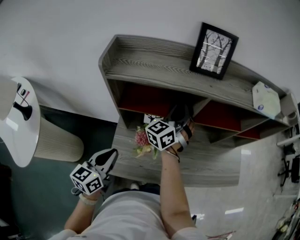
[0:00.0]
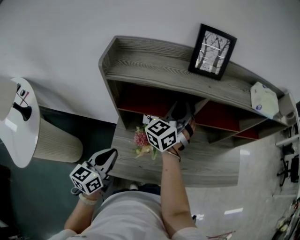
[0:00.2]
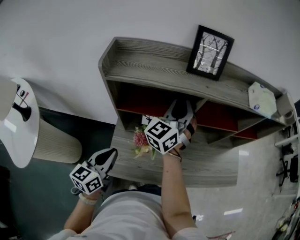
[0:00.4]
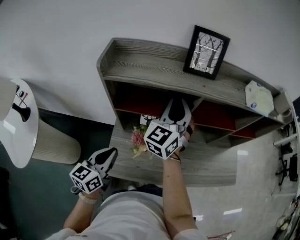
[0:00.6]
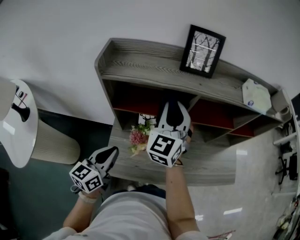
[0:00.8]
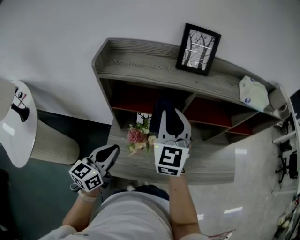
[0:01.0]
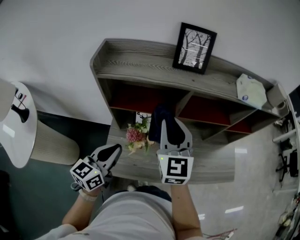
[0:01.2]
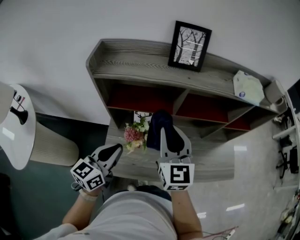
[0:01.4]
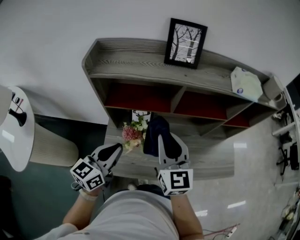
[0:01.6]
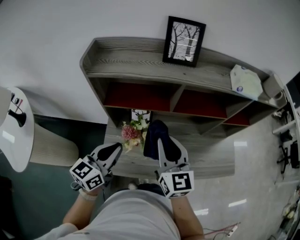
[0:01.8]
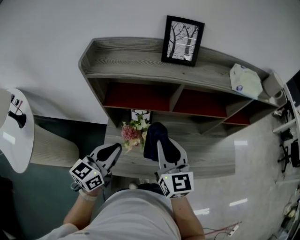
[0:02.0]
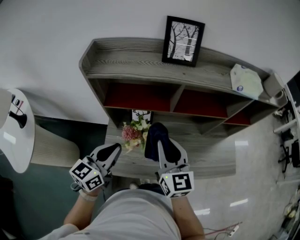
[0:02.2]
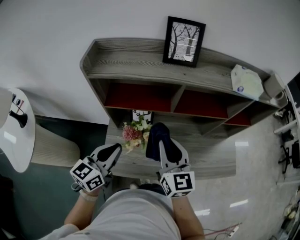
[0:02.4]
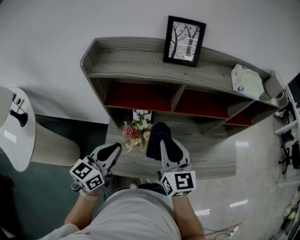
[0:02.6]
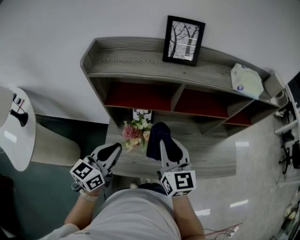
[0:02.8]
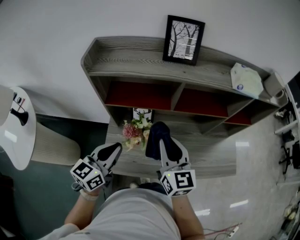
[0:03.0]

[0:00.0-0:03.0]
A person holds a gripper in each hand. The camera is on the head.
0:00.0 to 0:01.6: The left gripper travels to the right by approximately 5 cm, while the right gripper moves backward, about 15 cm, and turns by approximately 50 degrees.
0:01.6 to 0:03.0: There are only small adjustments of the grippers.

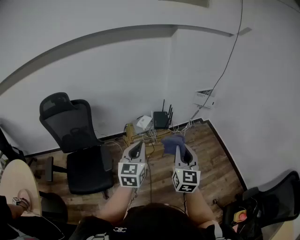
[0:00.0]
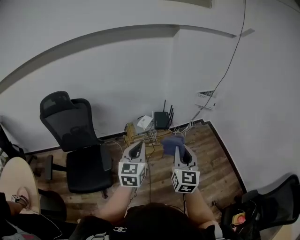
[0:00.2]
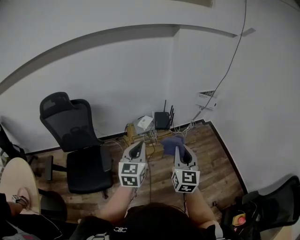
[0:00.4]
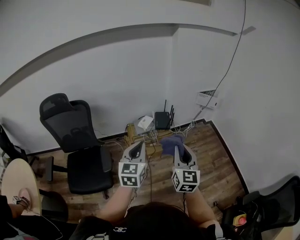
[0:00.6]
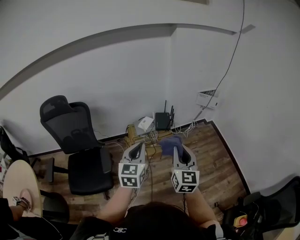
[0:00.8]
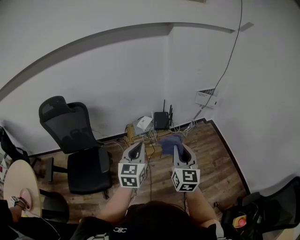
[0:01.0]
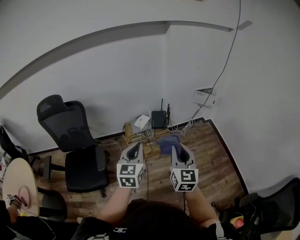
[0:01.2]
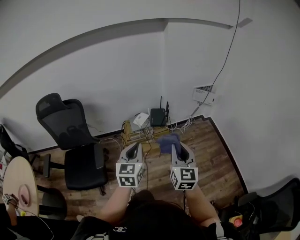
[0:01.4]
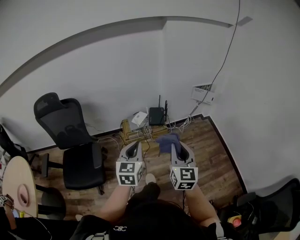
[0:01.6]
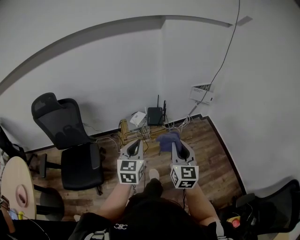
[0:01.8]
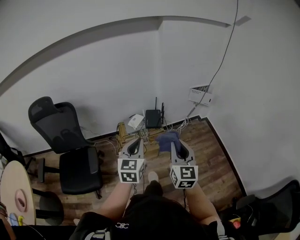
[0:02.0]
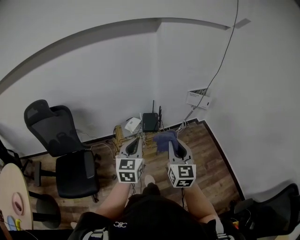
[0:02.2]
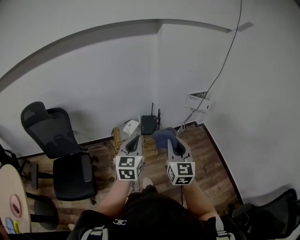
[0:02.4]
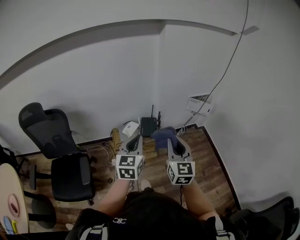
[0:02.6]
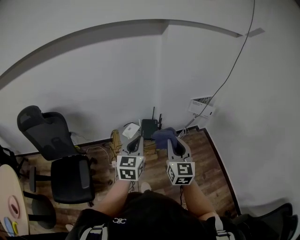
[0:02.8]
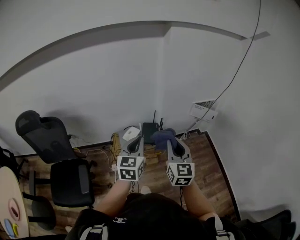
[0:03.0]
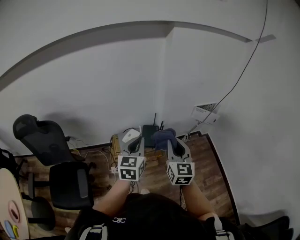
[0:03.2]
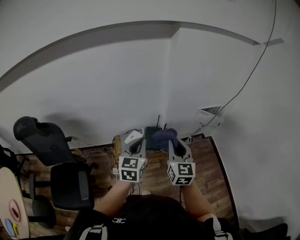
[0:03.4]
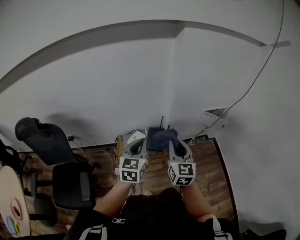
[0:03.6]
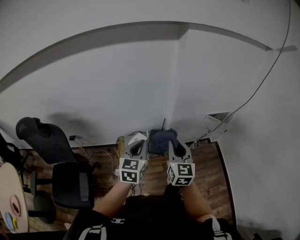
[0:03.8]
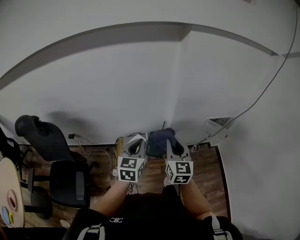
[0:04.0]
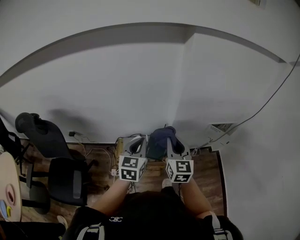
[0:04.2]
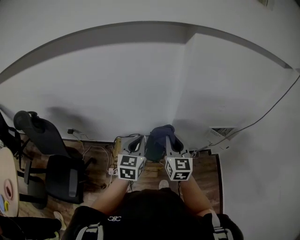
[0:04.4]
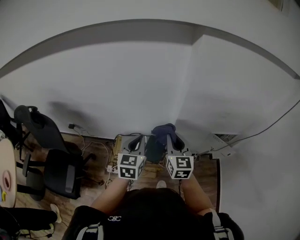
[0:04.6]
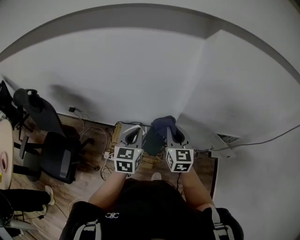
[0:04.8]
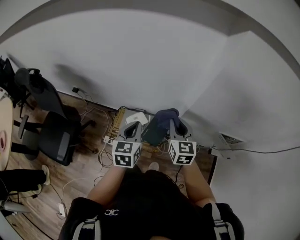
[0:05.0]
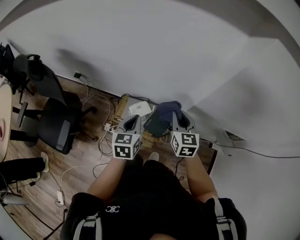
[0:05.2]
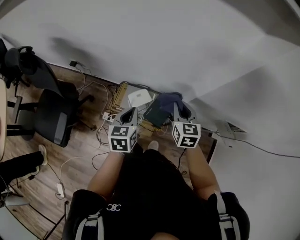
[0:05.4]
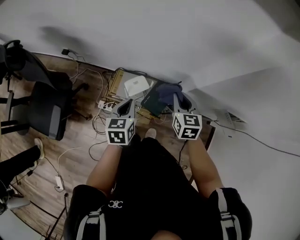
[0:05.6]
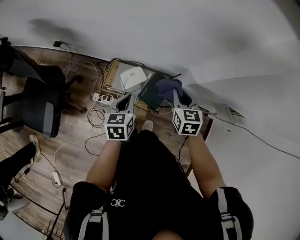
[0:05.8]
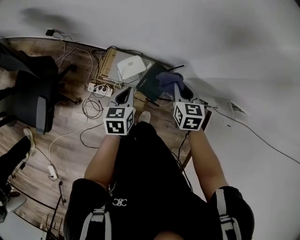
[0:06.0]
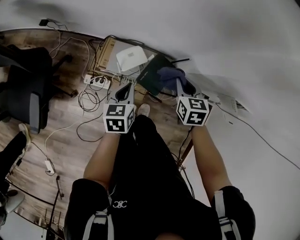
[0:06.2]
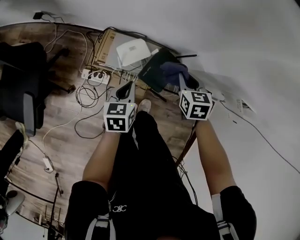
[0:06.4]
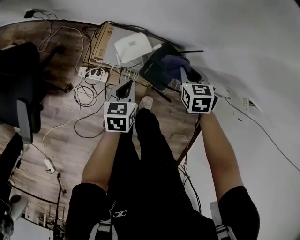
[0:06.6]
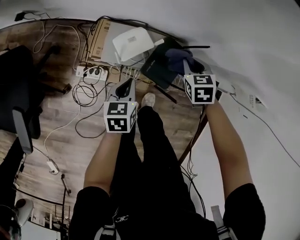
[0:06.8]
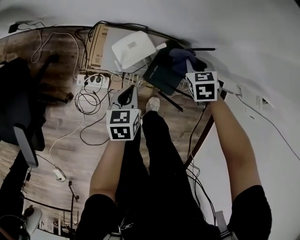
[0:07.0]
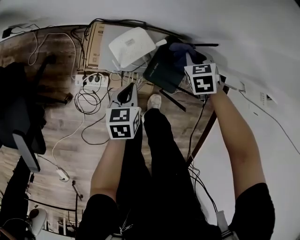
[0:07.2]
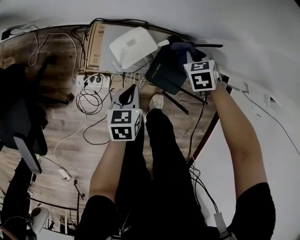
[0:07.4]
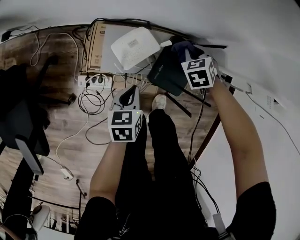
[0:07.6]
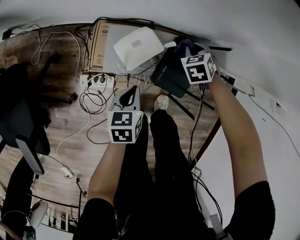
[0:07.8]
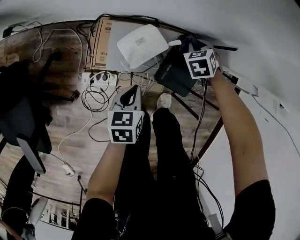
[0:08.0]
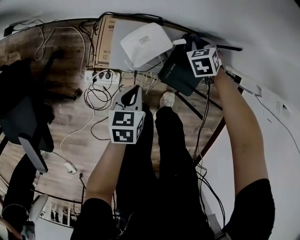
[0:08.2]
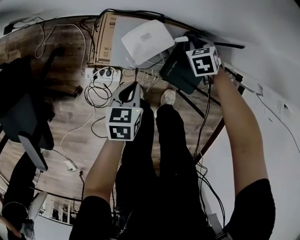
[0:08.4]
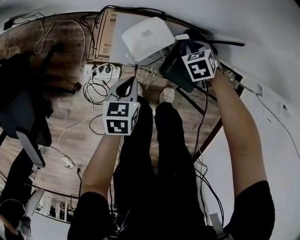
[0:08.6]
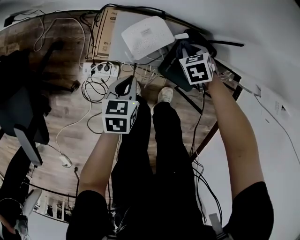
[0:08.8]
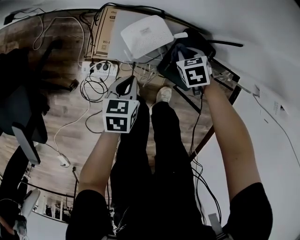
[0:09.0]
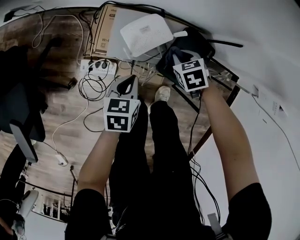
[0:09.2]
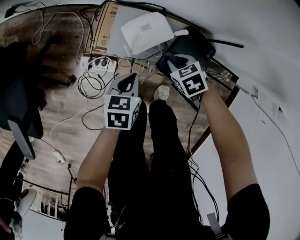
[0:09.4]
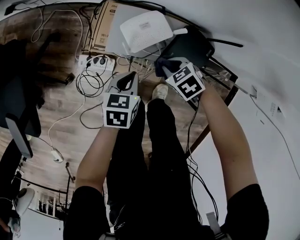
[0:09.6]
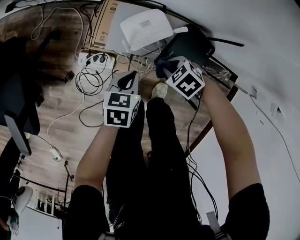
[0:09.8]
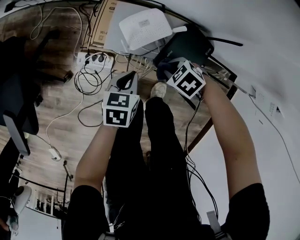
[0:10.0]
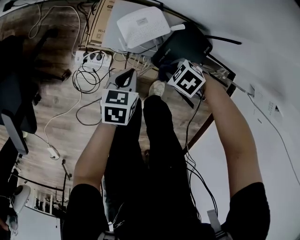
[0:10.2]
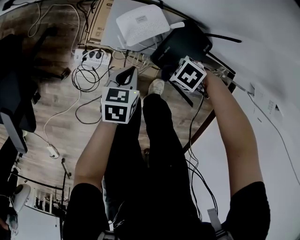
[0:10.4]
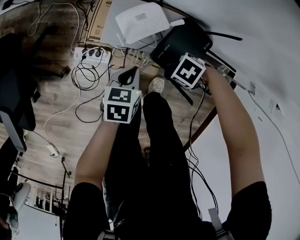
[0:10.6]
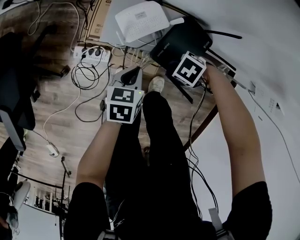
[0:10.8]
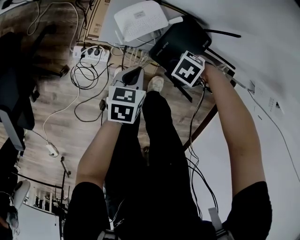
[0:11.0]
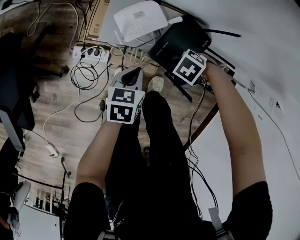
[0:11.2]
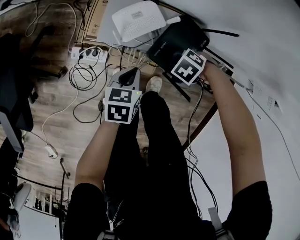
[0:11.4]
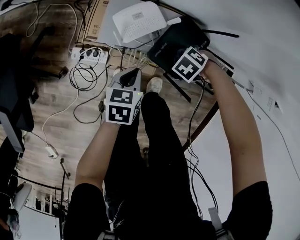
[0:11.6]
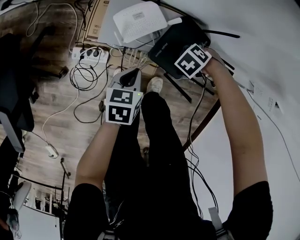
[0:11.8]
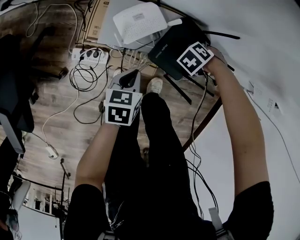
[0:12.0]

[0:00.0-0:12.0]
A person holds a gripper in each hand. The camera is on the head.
0:00.0 to 0:01.6: Both grippers move to the right, some 10 cm.
0:01.6 to 0:03.0: The grippers both shift forward by about 25 cm.
0:03.0 to 0:04.4: Both grippers travel together forward, some 25 cm.
0:04.4 to 0:06.0: The right gripper is displaced downward and forward by approximately 30 cm, and tips its fingers downward by some 40 degrees; the left gripper is displaced downward by approximately 30 cm, and turns by roughly 40 degrees.
0:06.0 to 0:07.6: Both grippers travel together downward, about 30 cm. The right gripper turns by approximately 30 degrees.
0:07.6 to 0:09.0: The right gripper moves roughly 10 cm.
0:09.0 to 0:10.4: The right gripper ends up roughly 15 cm from where it was, and rotates roughly 50 degrees.
0:10.4 to 0:12.0: The right gripper changes place by roughly 15 cm, and rotates roughly 30 degrees.

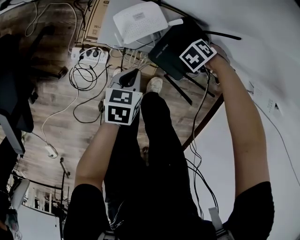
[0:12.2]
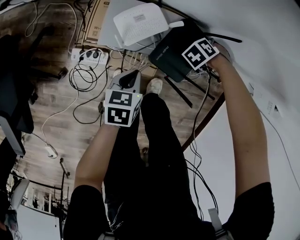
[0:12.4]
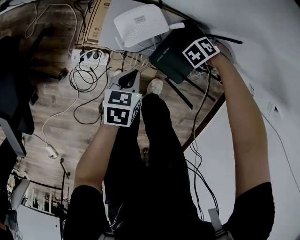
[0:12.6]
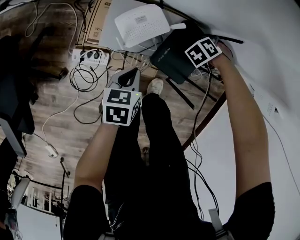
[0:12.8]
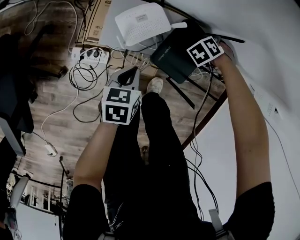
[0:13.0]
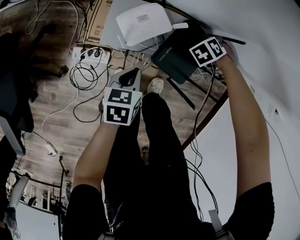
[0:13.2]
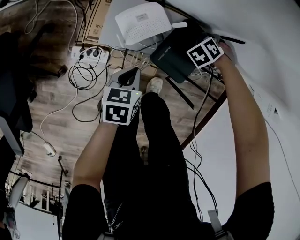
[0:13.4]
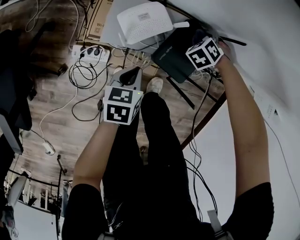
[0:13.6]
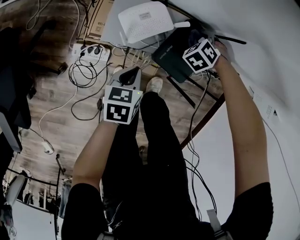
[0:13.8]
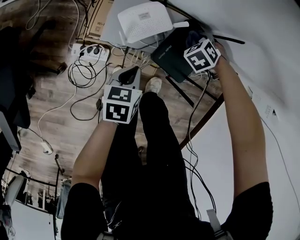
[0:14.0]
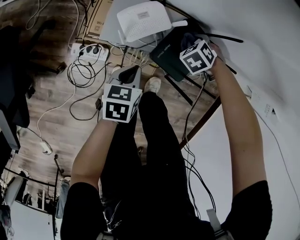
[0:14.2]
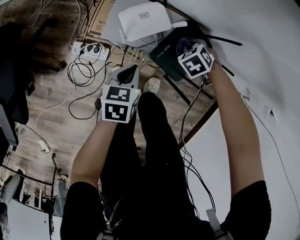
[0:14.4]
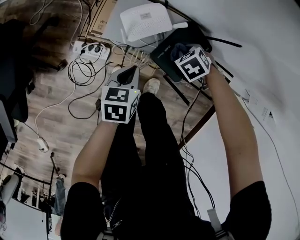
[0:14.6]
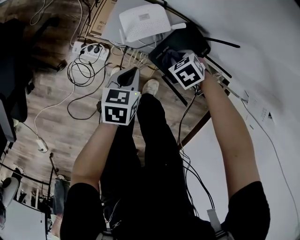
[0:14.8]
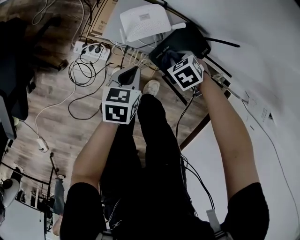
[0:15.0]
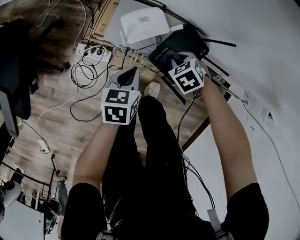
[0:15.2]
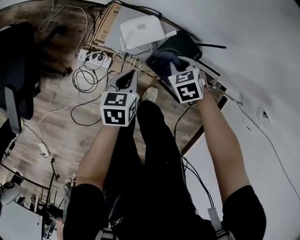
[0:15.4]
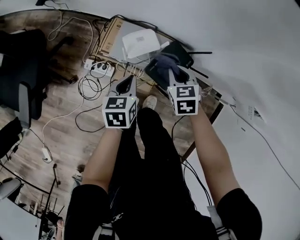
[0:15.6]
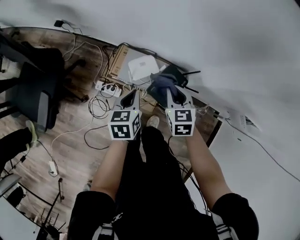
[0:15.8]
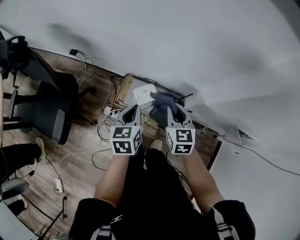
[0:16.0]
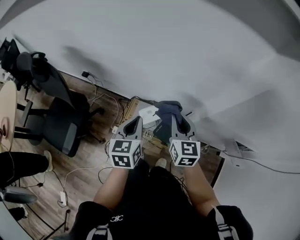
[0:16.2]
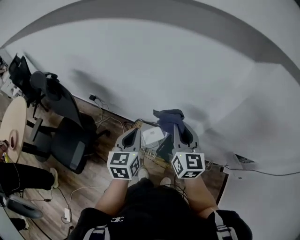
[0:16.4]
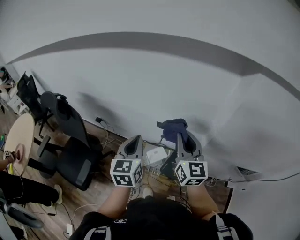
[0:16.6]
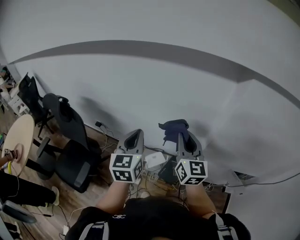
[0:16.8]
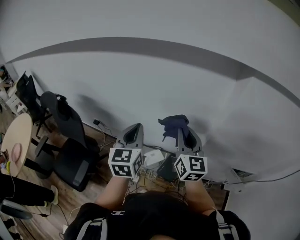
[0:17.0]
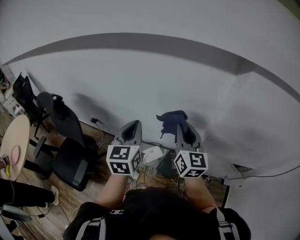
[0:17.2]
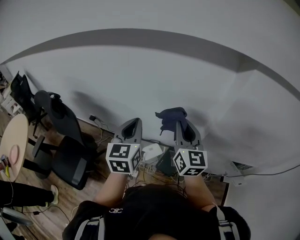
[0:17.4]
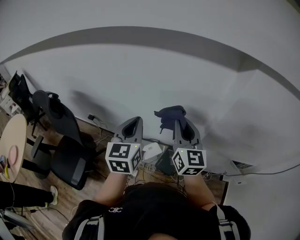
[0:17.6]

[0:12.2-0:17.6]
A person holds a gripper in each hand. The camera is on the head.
0:12.2 to 0:13.6: The right gripper changes place by roughly 5 cm.
0:13.6 to 0:15.0: The right gripper changes place by some 15 cm, and swivels about 30 degrees.
0:15.0 to 0:16.2: The two grippers go some 50 cm upward. The right gripper tips its fingers upward by roughly 60 degrees. Meanwhile the left gripper turns by some 30 degrees.
0:16.2 to 0:17.6: Both grippers move upward, roughly 20 cm. The right gripper swivels approximately 20 degrees; the left gripper swivels some 20 degrees.

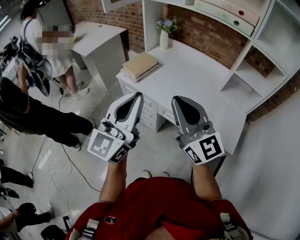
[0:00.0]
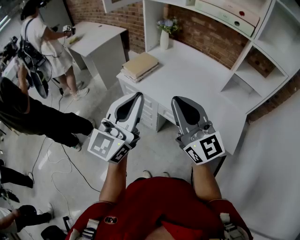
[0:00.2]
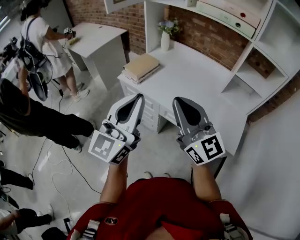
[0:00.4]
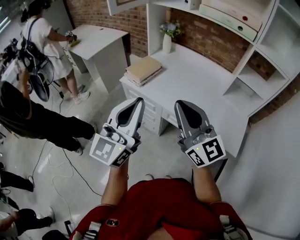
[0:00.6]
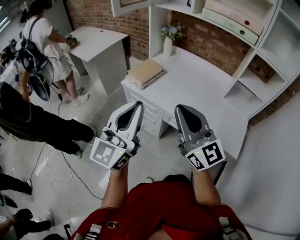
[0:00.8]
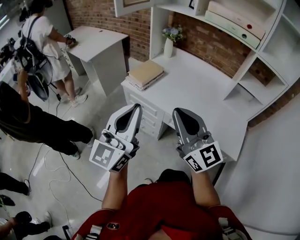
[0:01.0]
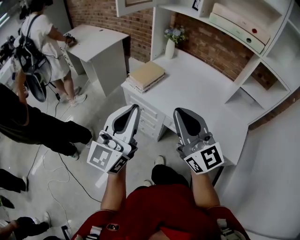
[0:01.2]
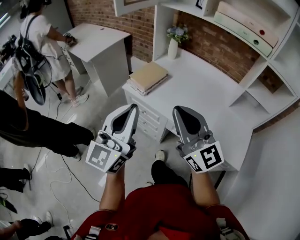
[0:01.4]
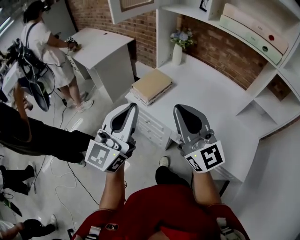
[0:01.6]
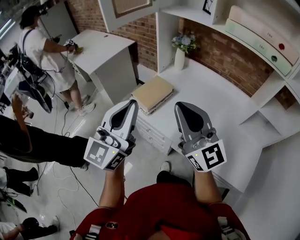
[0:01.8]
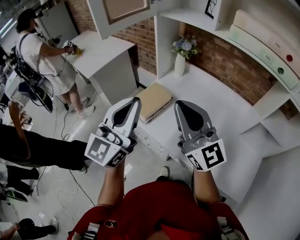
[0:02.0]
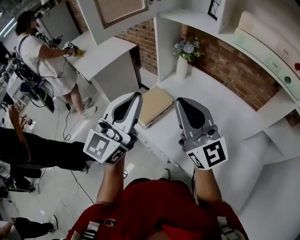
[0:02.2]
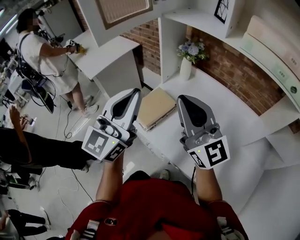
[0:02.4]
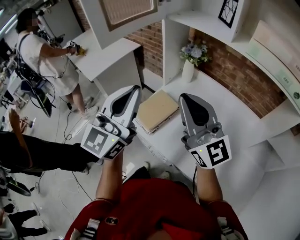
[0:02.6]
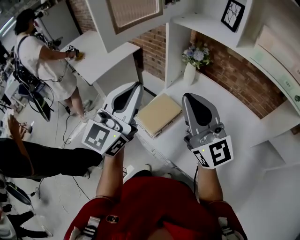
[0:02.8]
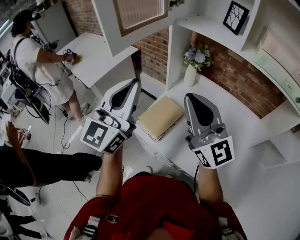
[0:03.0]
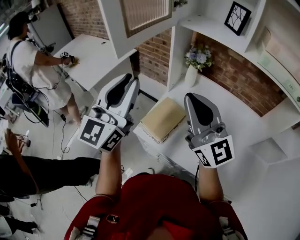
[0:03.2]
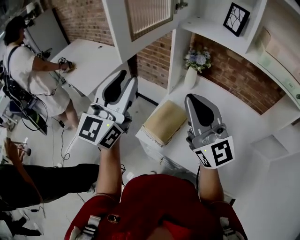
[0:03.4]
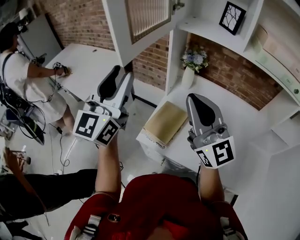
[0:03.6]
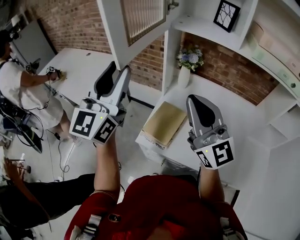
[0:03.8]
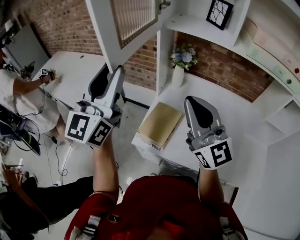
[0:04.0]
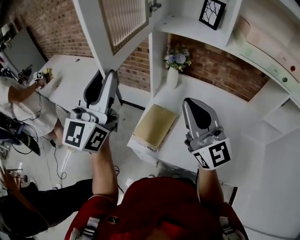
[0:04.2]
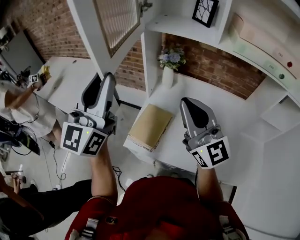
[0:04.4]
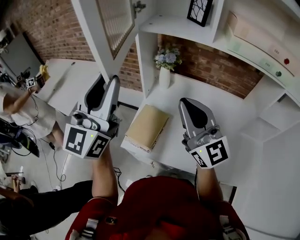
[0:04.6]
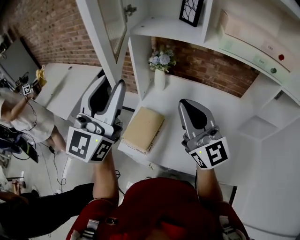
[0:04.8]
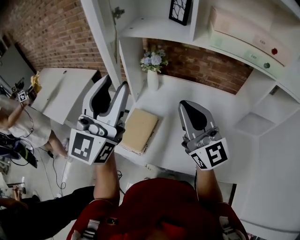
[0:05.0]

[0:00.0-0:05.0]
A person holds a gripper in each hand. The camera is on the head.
0:00.0 to 0:01.6: Both grippers travel together forward and to the left, some 15 cm.
0:01.6 to 0:03.4: The grippers both shift forward by some 30 cm. The left gripper opens.
0:03.4 to 0:05.0: The two grippers go about 15 cm to the right.
